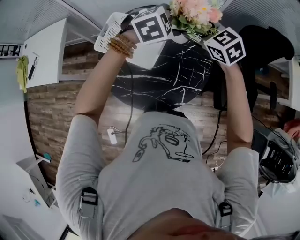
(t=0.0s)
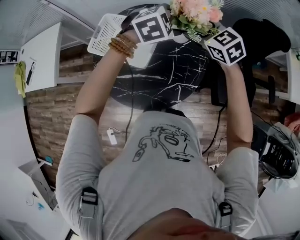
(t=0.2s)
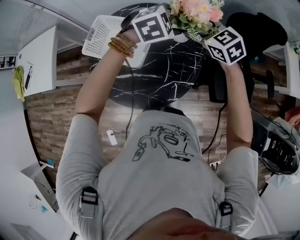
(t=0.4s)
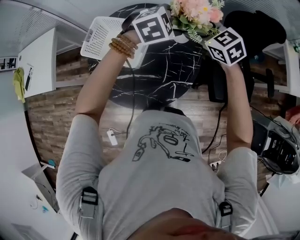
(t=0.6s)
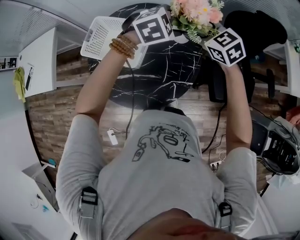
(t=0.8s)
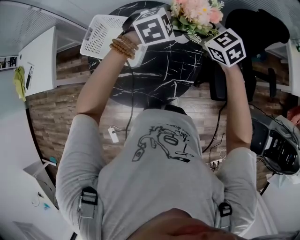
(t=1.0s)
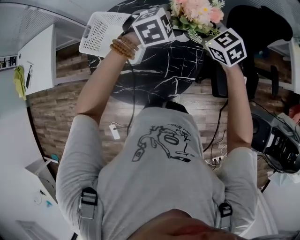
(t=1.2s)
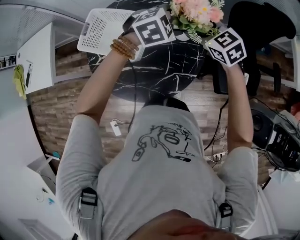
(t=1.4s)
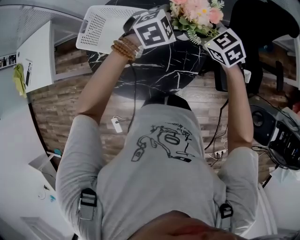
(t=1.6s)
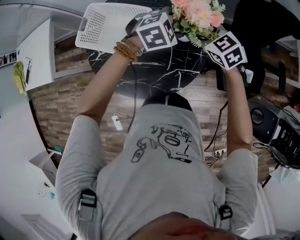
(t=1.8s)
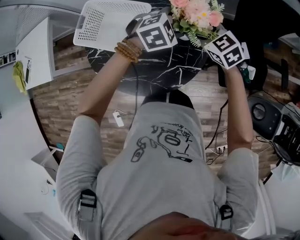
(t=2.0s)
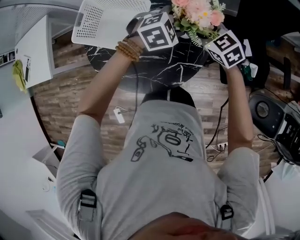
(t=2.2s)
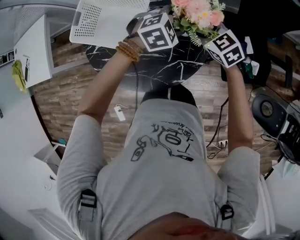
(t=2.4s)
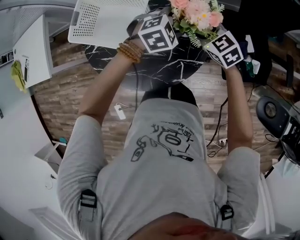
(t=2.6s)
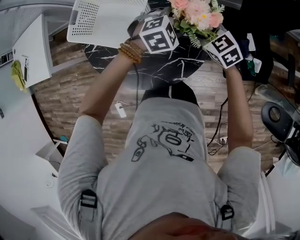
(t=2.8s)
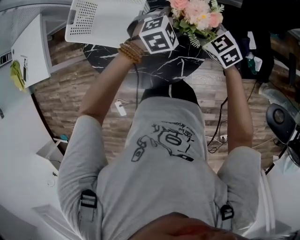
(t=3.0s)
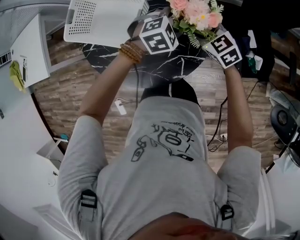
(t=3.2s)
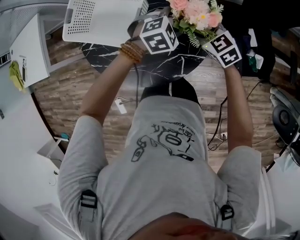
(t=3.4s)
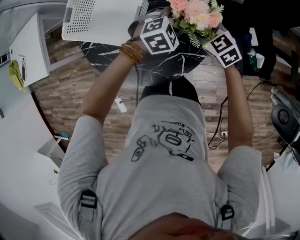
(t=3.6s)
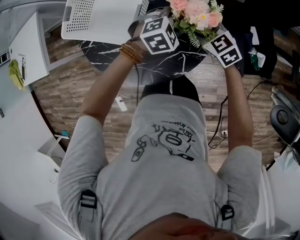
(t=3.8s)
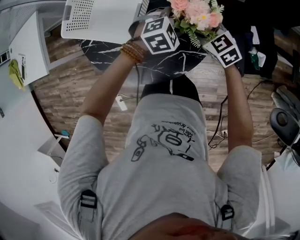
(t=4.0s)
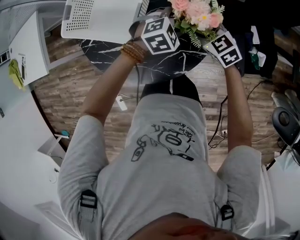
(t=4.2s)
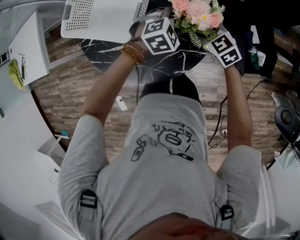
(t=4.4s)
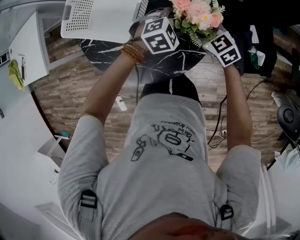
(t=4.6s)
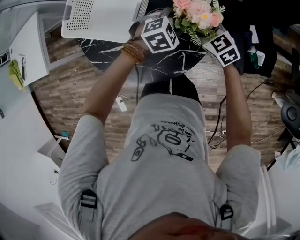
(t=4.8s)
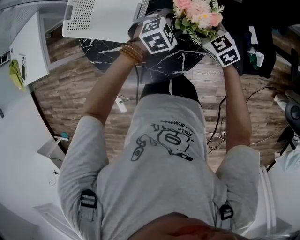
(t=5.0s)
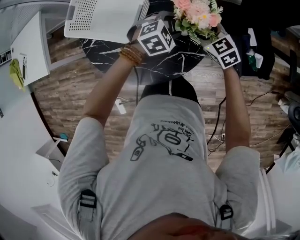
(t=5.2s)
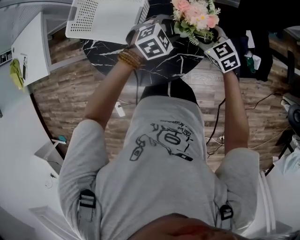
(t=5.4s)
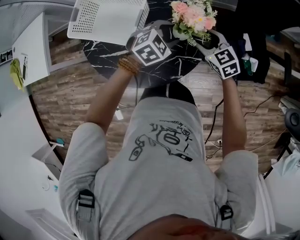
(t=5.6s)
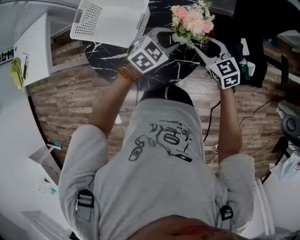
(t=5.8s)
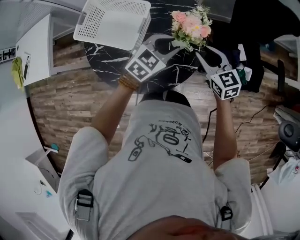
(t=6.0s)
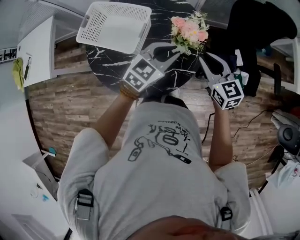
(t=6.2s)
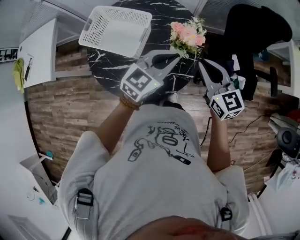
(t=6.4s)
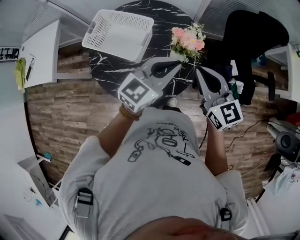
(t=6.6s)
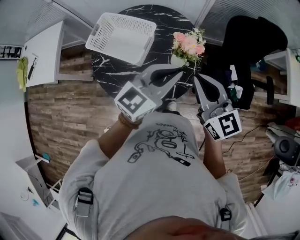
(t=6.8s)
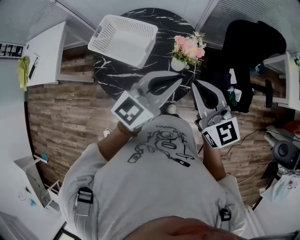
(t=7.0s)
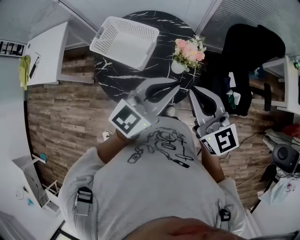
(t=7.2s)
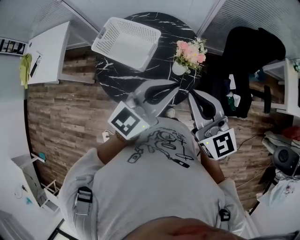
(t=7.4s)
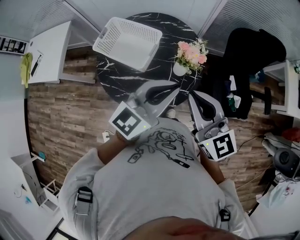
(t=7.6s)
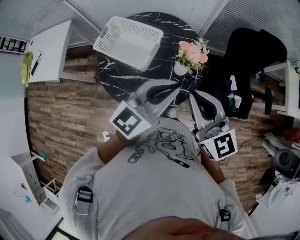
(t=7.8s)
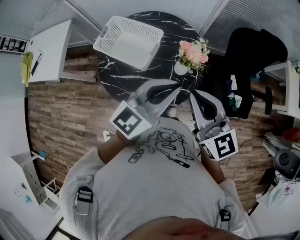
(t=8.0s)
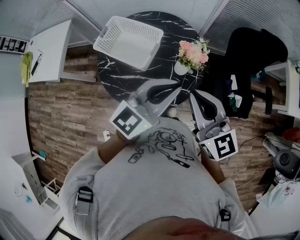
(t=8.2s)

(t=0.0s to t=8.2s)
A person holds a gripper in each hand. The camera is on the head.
t=0.0s - t=1.6s: Both grippers travel together to the right and downward, some 15 cm.
t=1.6s - t=3.2s: Both grippers move downward, about 15 cm.
t=3.2s - t=5.0s: There are only small adjustments of the grippers.
t=5.0s - t=6.6s: The two grippers go some 30 cm upward and backward. The right gripper changes its angle by some 30 degrees, and closes its fingers. The left gripper points its fingers roughly 50 degrees further upward, and closes.
t=6.6s - t=8.2s: Both grippers move upward and backward, roughly 10 cm.

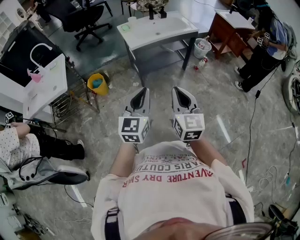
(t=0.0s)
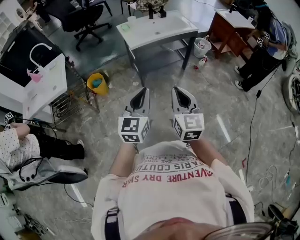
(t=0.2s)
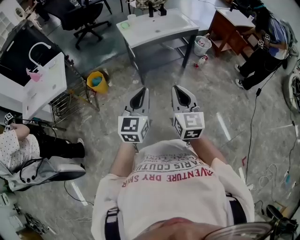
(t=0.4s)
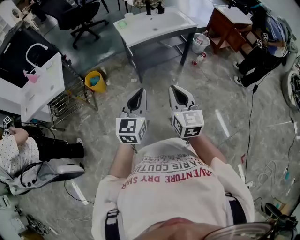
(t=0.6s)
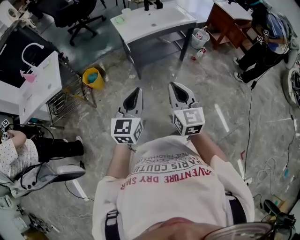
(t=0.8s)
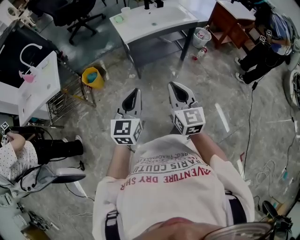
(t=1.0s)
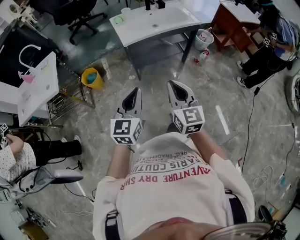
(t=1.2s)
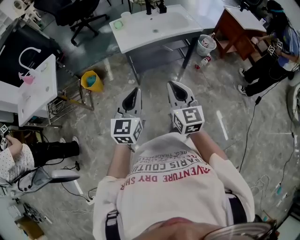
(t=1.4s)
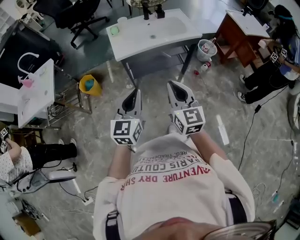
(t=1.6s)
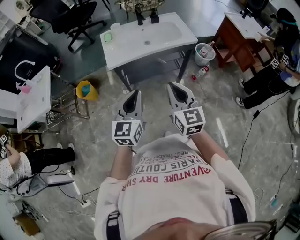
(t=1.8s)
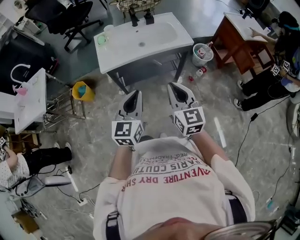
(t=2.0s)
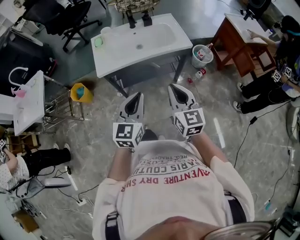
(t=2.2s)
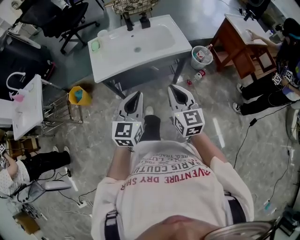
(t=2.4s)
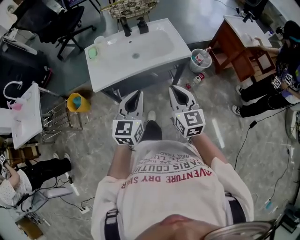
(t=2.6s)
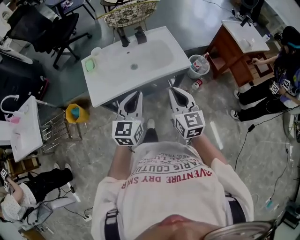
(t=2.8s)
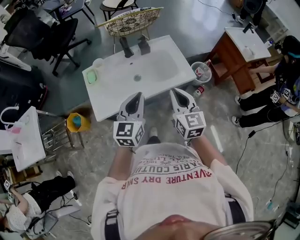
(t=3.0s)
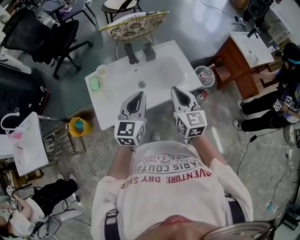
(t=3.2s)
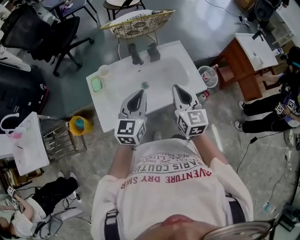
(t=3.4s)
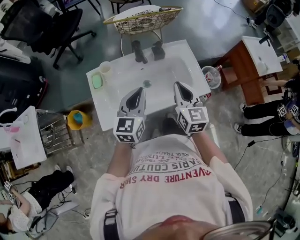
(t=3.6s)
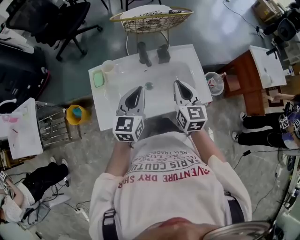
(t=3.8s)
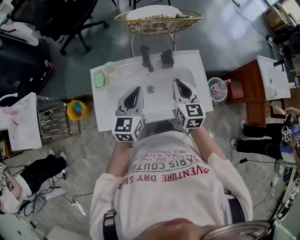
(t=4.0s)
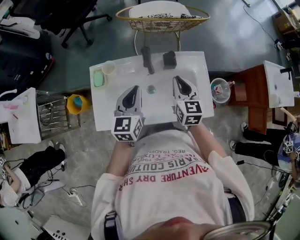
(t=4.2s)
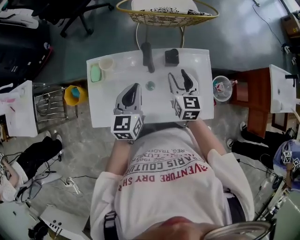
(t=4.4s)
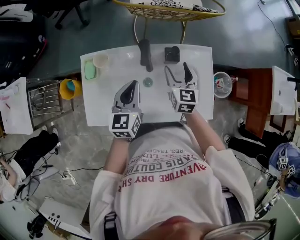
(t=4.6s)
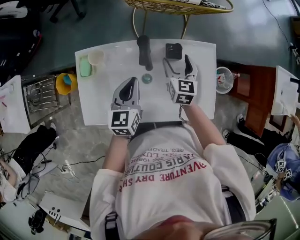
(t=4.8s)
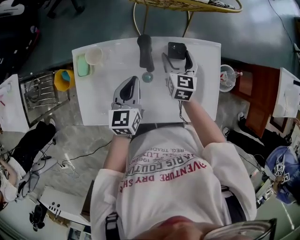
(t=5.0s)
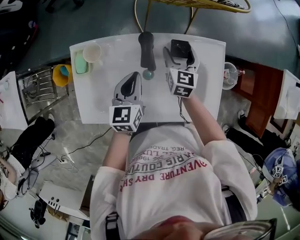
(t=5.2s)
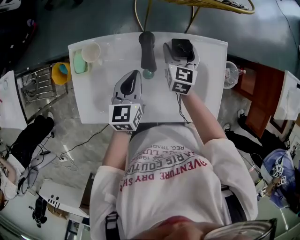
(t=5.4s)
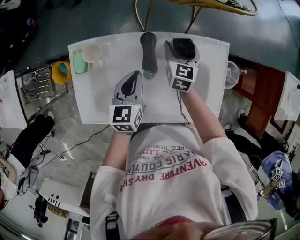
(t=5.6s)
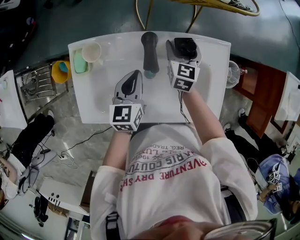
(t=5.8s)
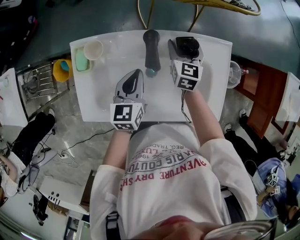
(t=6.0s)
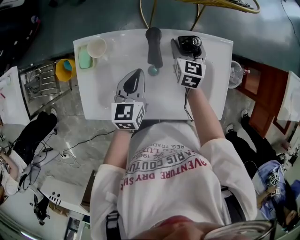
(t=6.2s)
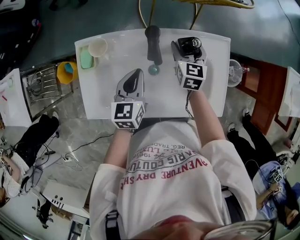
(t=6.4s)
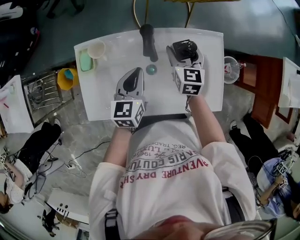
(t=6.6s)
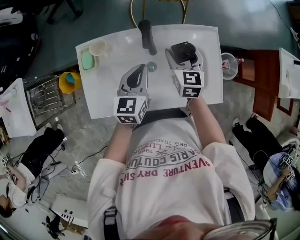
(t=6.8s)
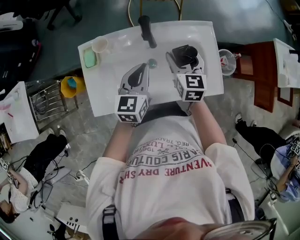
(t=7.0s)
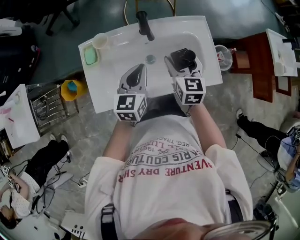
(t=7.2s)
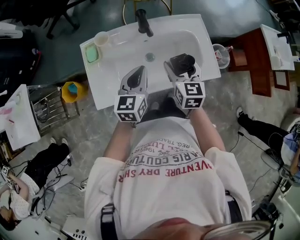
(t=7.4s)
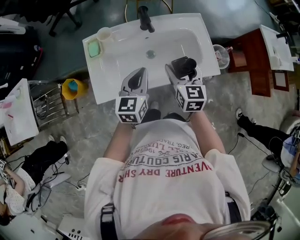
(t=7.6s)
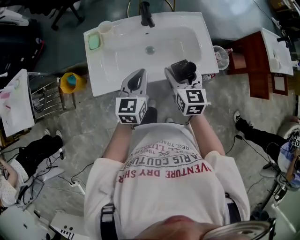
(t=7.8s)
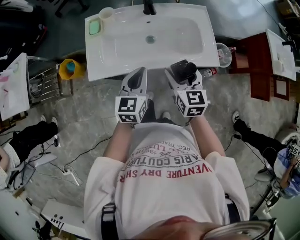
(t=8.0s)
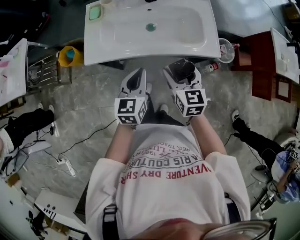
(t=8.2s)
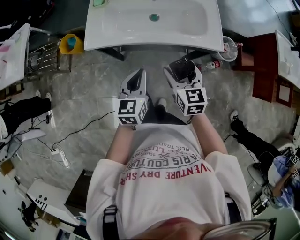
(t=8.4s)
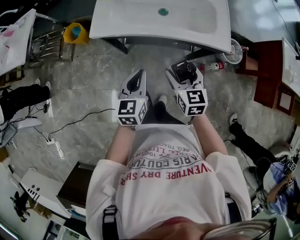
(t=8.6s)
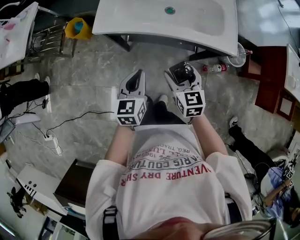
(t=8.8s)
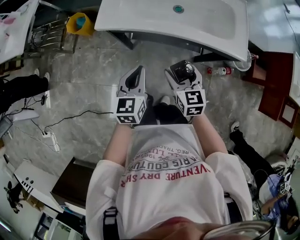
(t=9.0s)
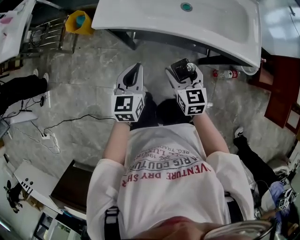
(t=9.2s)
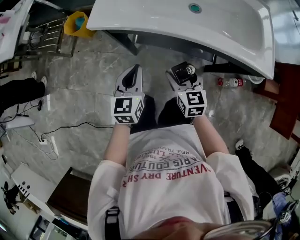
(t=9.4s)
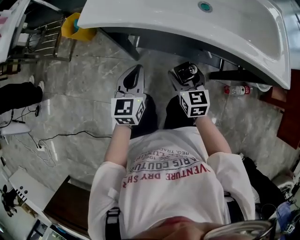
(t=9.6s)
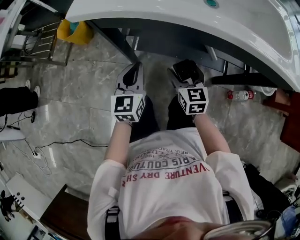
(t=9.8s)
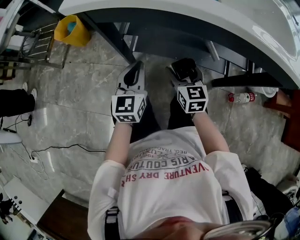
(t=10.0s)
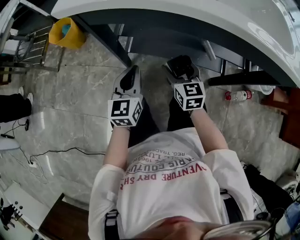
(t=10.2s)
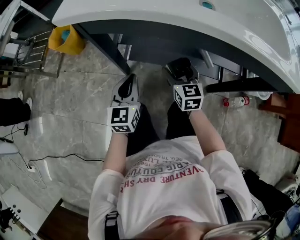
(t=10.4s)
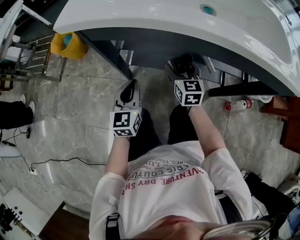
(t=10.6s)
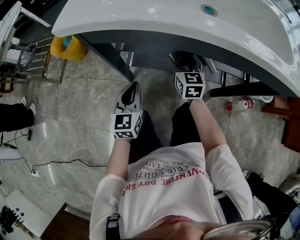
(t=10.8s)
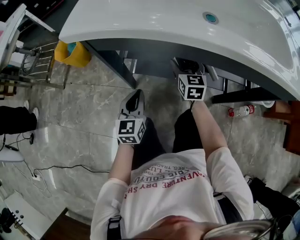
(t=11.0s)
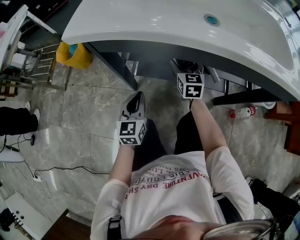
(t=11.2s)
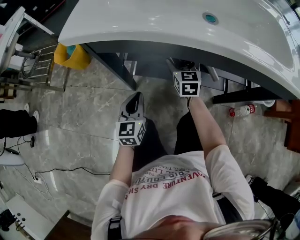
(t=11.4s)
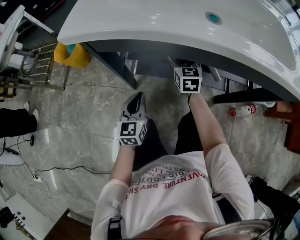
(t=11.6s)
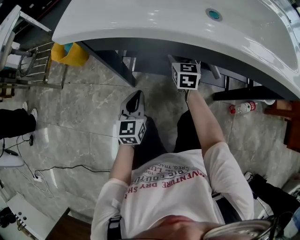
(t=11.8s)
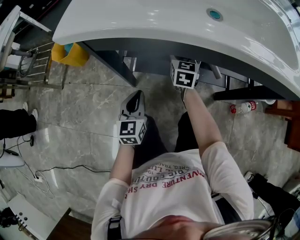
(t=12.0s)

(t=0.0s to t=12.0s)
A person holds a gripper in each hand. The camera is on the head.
t=0.0s - t=1.6s: The grippers both shift forward and to the right by some 25 cm.
t=1.6s - t=3.0s: Both grippers travel together forward, some 40 cm.
t=3.0s - t=4.4s: The grippers both shift forward by about 30 cm. The right gripper opens its fingers, while the left gripper rotates some 20 degrees.
t=4.4s - t=6.0s: The grippers both shift downward and forward by roughly 15 cm. The right gripper opens up.
t=6.0s - t=7.6s: The right gripper goes some 30 cm backward and upward. The left gripper heads backward and upward, covering roughly 20 cm.
t=7.6s - t=9.0s: The left gripper ends up about 25 cm from where it was, and swivels about 20 degrees. Meanwhile the right gripper ends up about 25 cm from where it was, and turns by approximately 30 degrees.
t=9.0s - t=10.4s: The right gripper heads downward and forward, covering approximately 35 cm. Meanwhile the left gripper goes approximately 35 cm downward.
t=10.4s - t=12.0s: The right gripper shifts some 15 cm forward, while the left gripper moves roughly 5 cm.

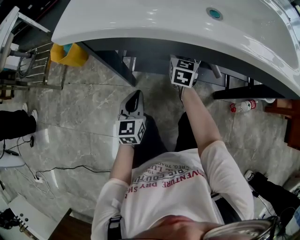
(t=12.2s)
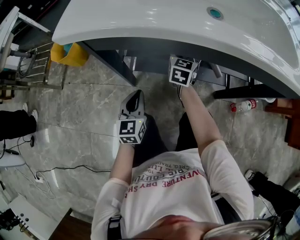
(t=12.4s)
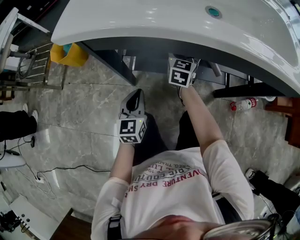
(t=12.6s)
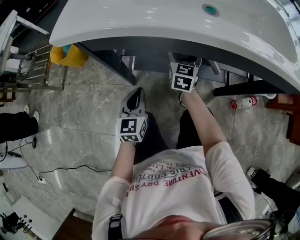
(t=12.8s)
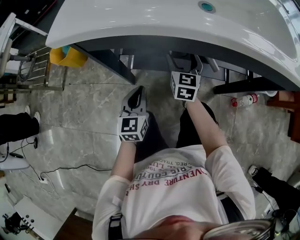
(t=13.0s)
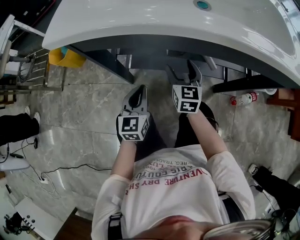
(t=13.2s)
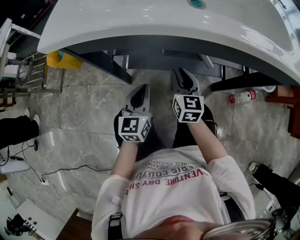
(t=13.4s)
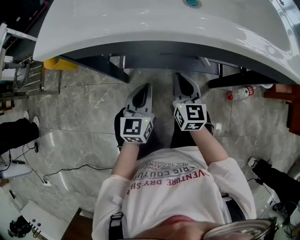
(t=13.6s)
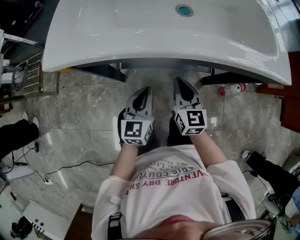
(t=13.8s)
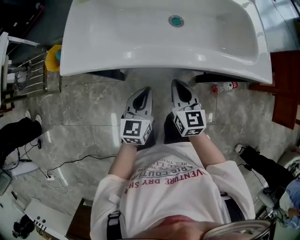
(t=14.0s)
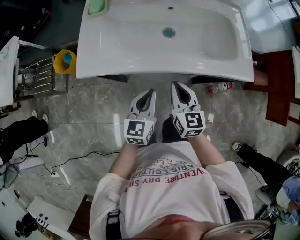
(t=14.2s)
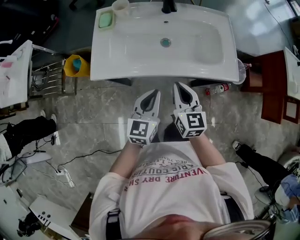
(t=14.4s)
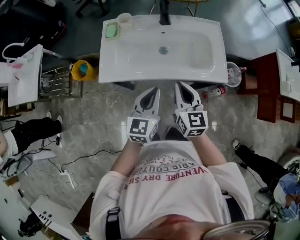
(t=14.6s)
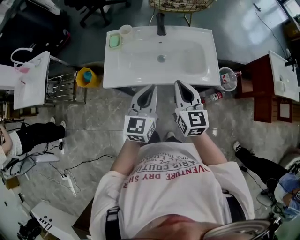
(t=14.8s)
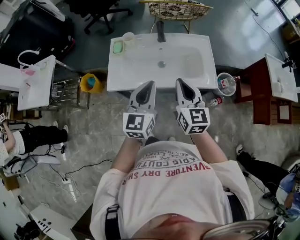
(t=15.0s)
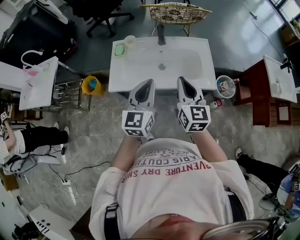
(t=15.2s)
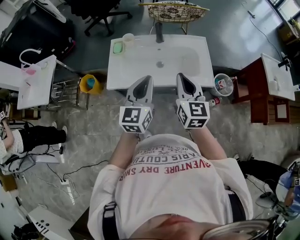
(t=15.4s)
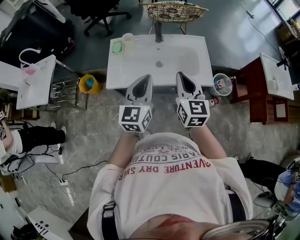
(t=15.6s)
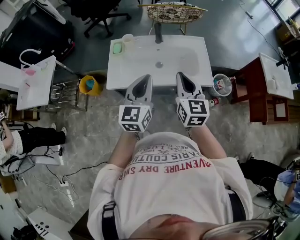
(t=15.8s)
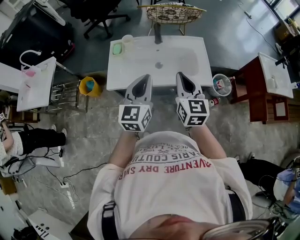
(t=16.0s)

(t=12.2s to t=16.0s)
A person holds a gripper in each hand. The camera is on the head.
t=12.2s - t=13.4s: The left gripper moves to the right, approximately 5 cm, while the right gripper heads backward, covering some 15 cm, and closes.
t=13.4s - t=14.8s: Both grippers travel together upward, some 60 cm.
t=14.8s - t=16.0s: The two grippers go about 10 cm upward.
